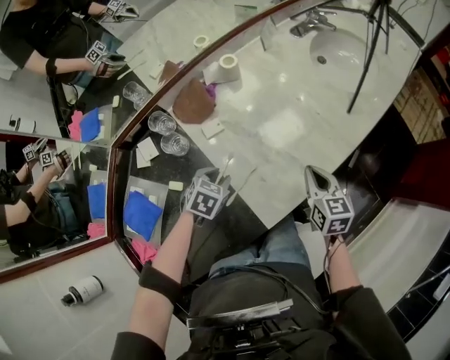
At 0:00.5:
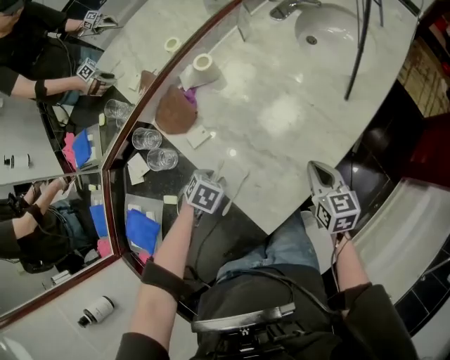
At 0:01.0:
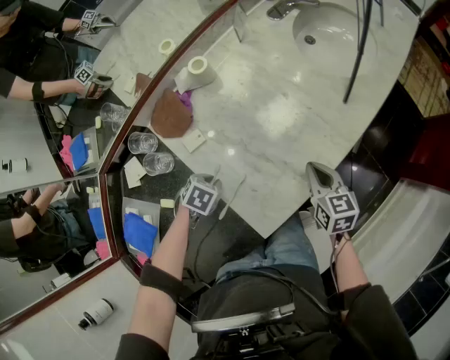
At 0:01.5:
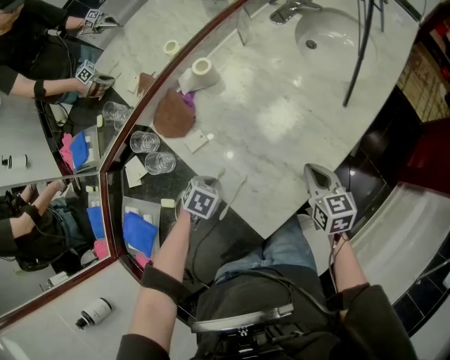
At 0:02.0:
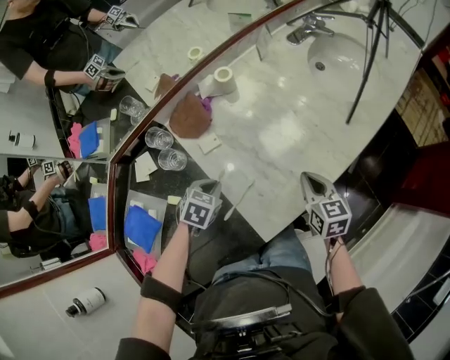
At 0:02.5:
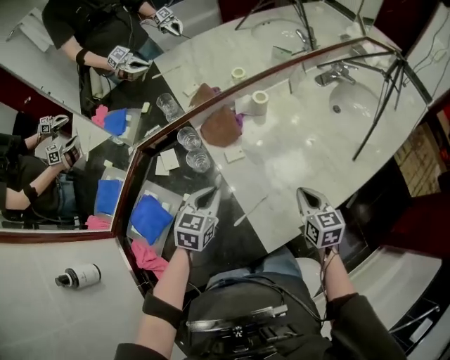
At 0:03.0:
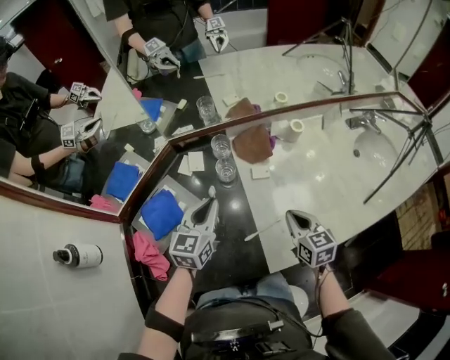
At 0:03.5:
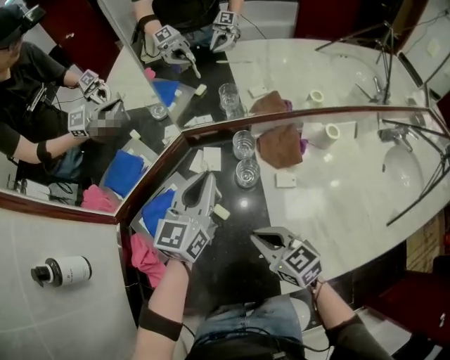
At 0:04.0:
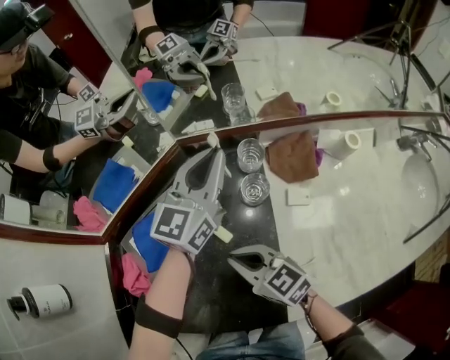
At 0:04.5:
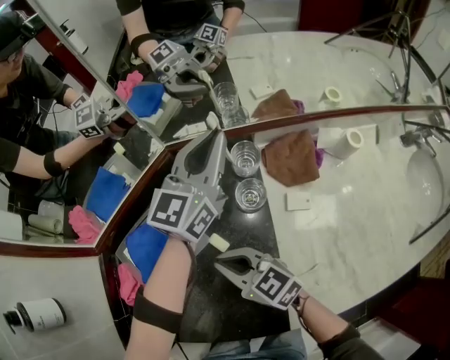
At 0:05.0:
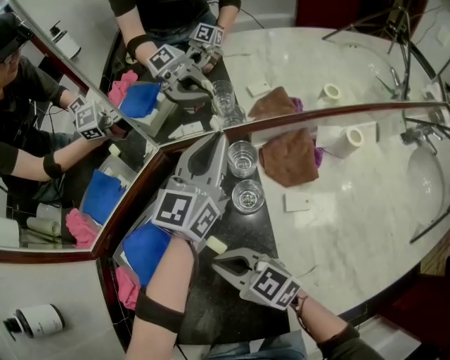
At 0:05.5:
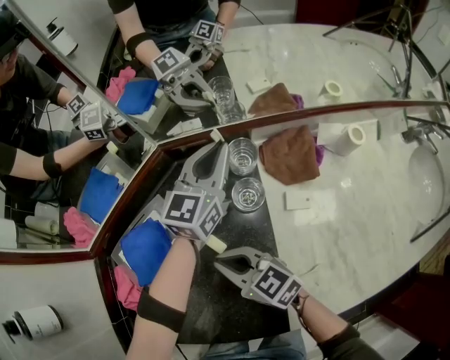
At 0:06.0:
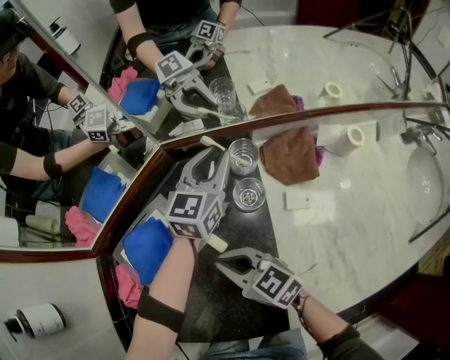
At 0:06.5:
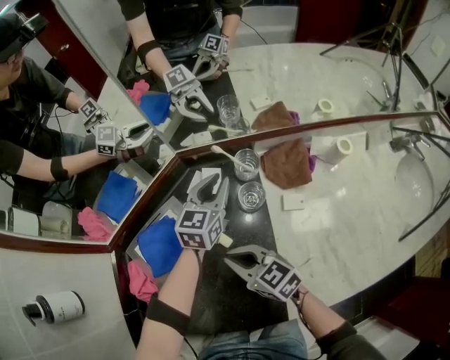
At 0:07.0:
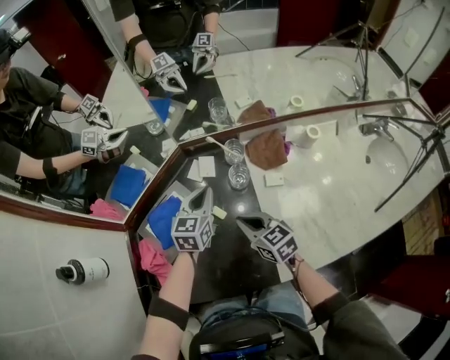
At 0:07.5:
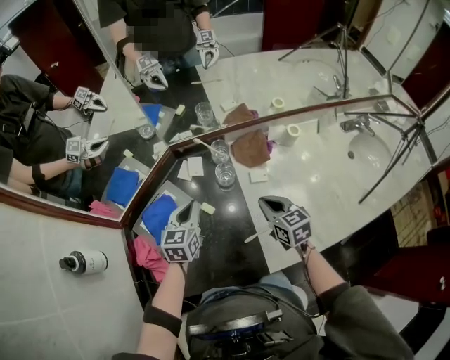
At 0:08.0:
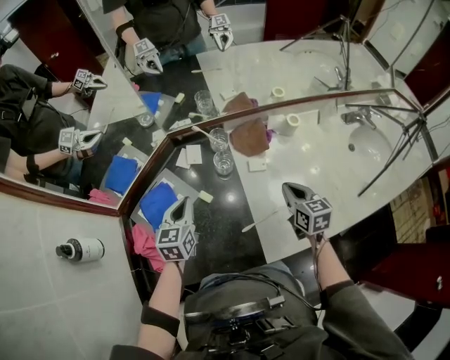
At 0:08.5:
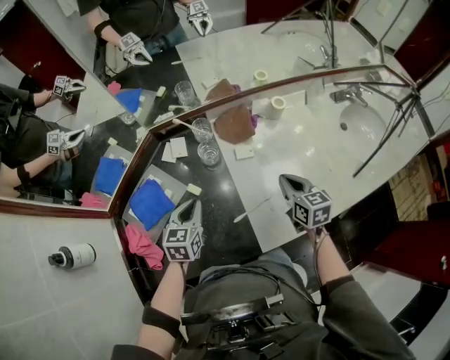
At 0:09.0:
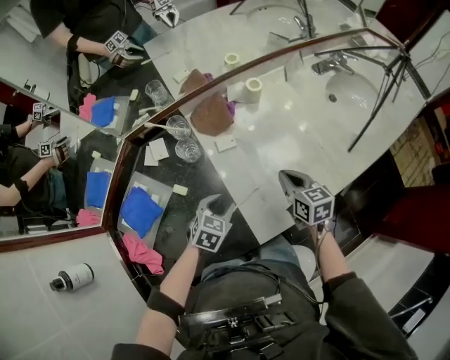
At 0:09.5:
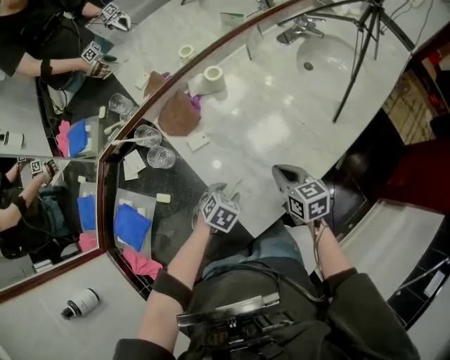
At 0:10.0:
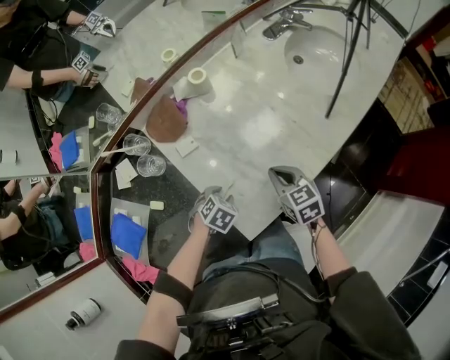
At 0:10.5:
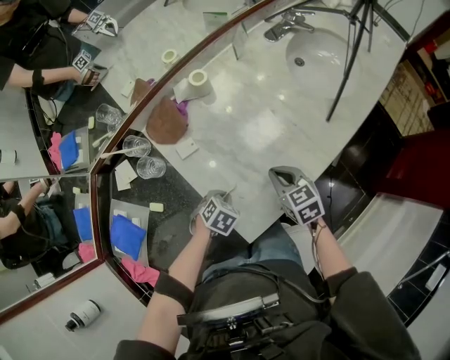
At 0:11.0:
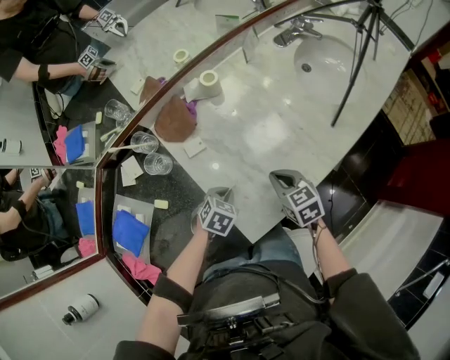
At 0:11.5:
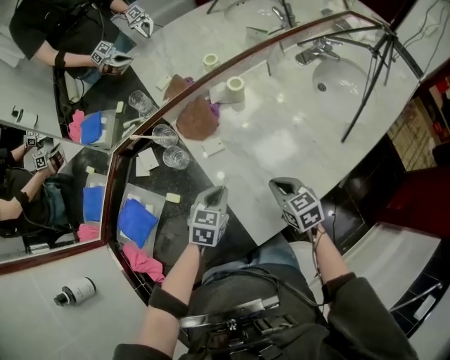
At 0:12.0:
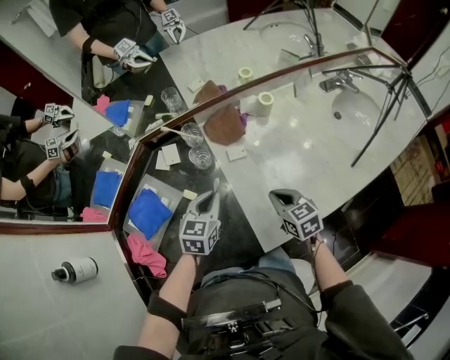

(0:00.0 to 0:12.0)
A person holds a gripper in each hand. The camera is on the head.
0:00.0 - 0:02.0: The left gripper closes.
0:02.0 - 0:04.0: The left gripper ends up about 35 cm from where it was, and tips its fingers upward by roughly 70 degrees. The right gripper changes place by about 40 cm, and rotates some 70 degrees.
0:04.0 - 0:06.0: The left gripper goes approximately 10 cm downward.
0:06.0 - 0:08.0: The left gripper travels backward and to the left by approximately 25 cm, and closes, while the right gripper goes about 30 cm to the right, and rotates approximately 50 degrees.
0:08.0 - 0:10.0: The left gripper ends up roughly 40 cm from where it was, angles its fingers downward, by approximately 40 degrees, and opens its fingers; the right gripper ends up some 20 cm from where it was.
0:10.0 - 0:12.0: The right gripper moves some 15 cm. Meanwhile the left gripper shifts approximately 20 cm upward, tilts its fingers approximately 40 degrees upward, and closes its fingers.

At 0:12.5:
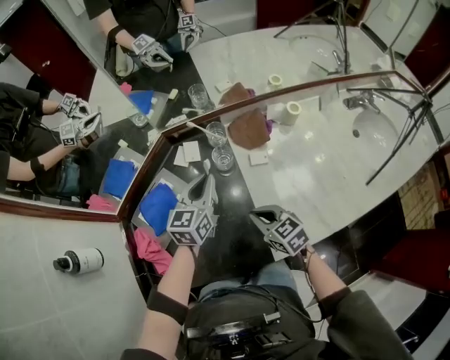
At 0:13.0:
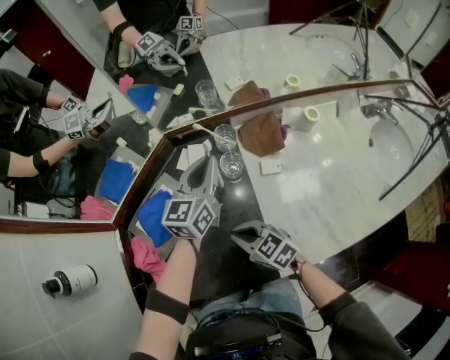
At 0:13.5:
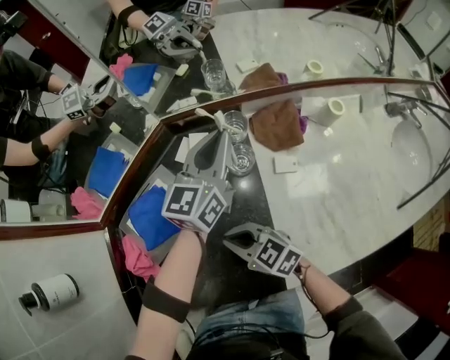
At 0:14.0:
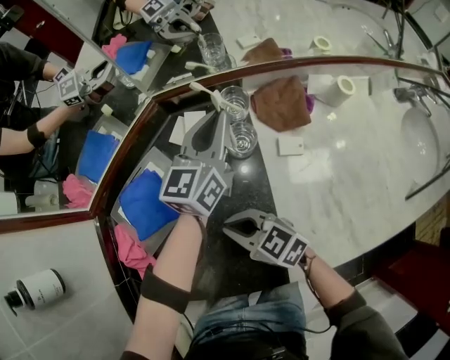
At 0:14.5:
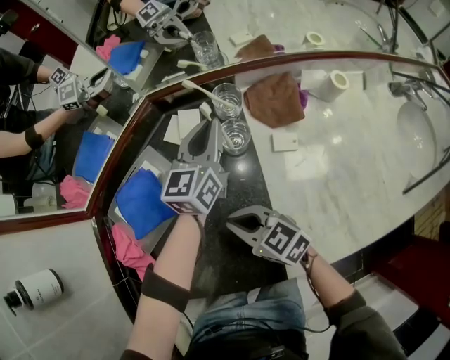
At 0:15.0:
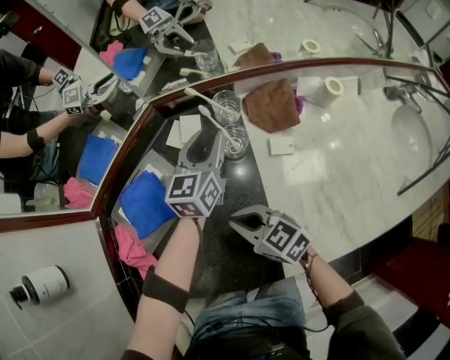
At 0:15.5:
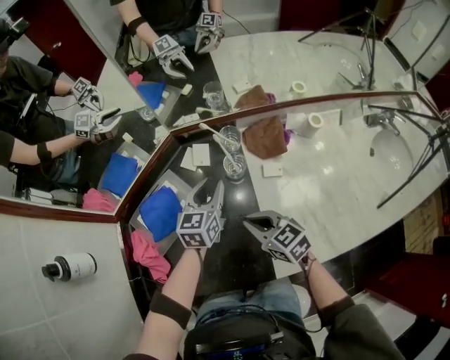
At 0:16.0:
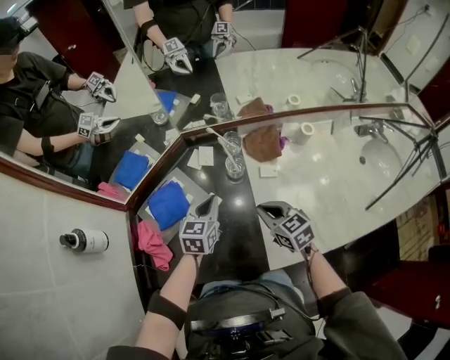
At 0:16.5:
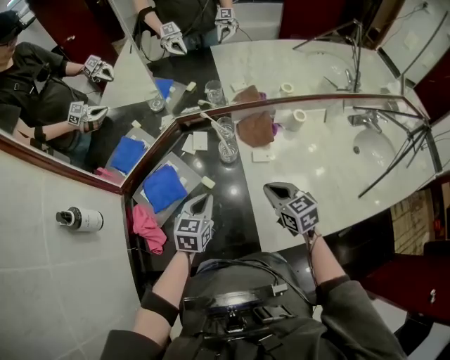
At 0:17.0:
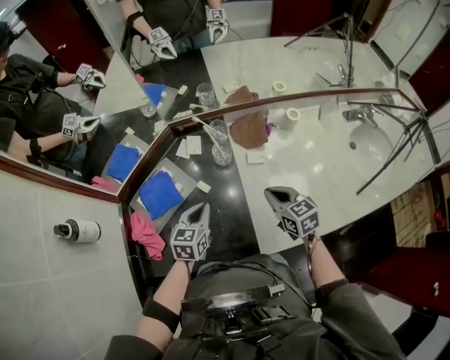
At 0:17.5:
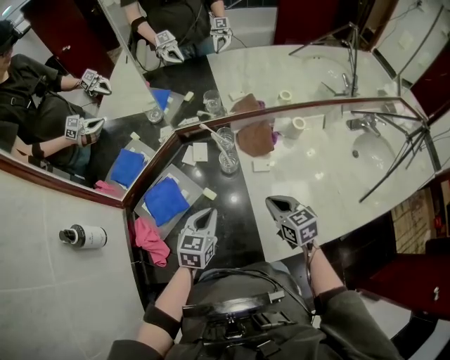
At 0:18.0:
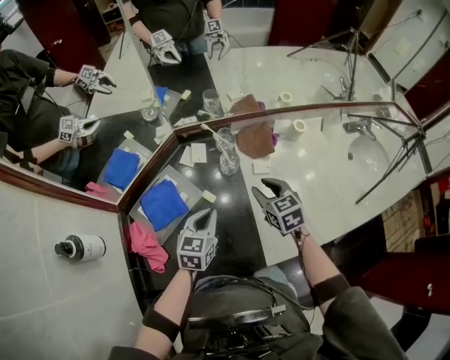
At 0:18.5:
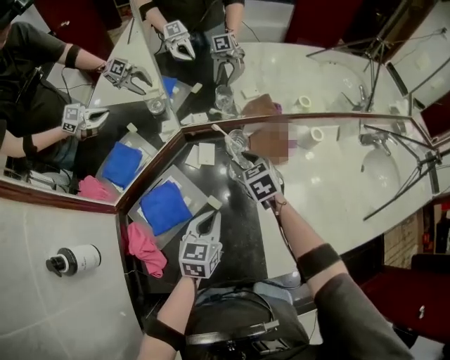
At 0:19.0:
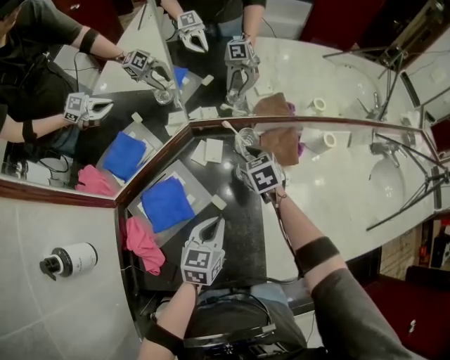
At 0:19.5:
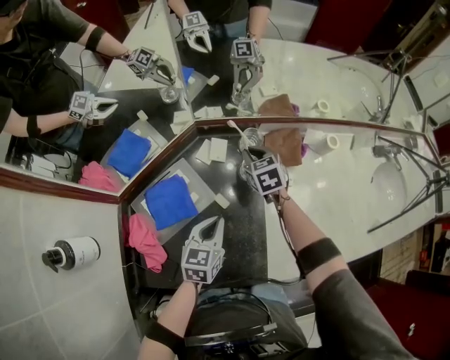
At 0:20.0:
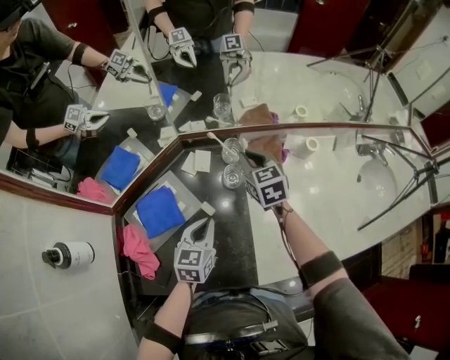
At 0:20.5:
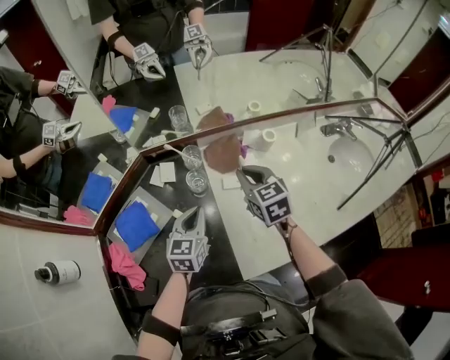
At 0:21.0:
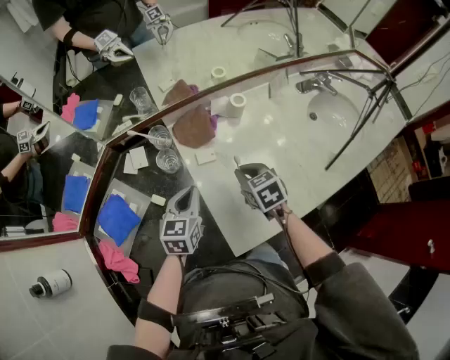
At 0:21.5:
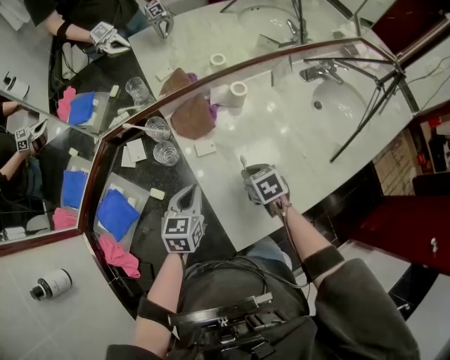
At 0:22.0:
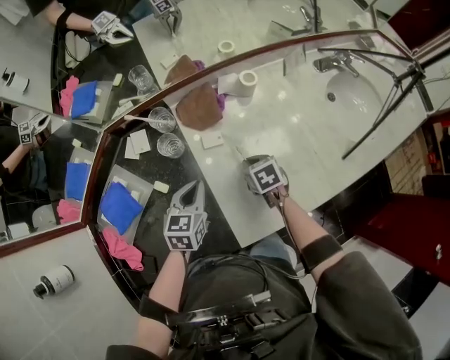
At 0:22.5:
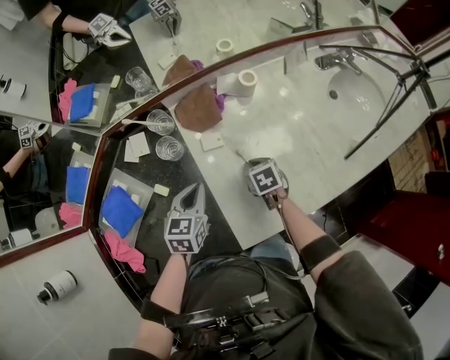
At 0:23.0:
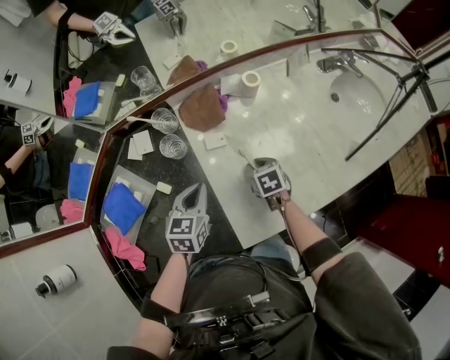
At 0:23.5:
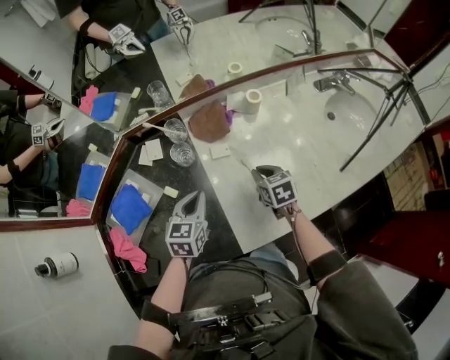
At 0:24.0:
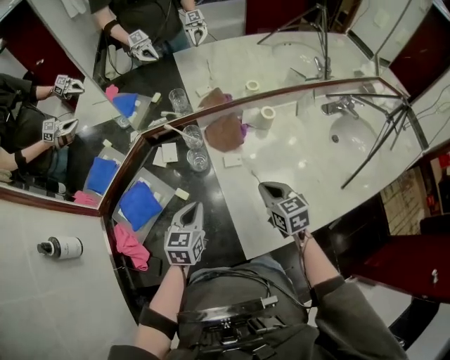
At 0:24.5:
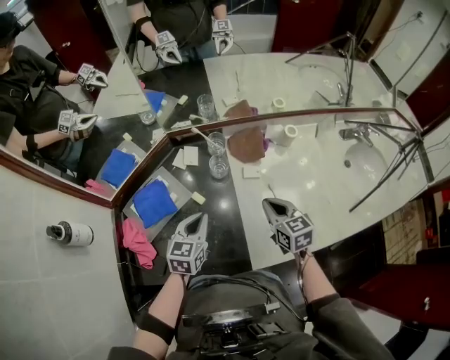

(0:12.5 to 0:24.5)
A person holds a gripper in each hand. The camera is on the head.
0:12.5 - 0:14.5: The right gripper is displaced to the left, downward and forward by some 15 cm, and swivels some 20 degrees. Meanwhile the left gripper is displaced forward and downward by some 15 cm.
0:14.5 - 0:16.5: The left gripper heads backward and to the left, covering roughly 20 cm, swivels approximately 30 degrees, and opens and closes again. Meanwhile the right gripper shifts approximately 20 cm to the right and upward, and turns by about 30 degrees.
0:16.5 - 0:18.5: The right gripper heads forward and to the left, covering approximately 25 cm, and opens up.
0:18.5 - 0:20.5: The left gripper moves to the right, roughly 10 cm, while the right gripper goes approximately 20 cm to the right and upward, and closes its fingers.
0:20.5 - 0:22.5: The left gripper moves downward and to the right, about 10 cm; the right gripper travels downward and to the right by approximately 25 cm, and swivels approximately 30 degrees.
0:22.5 - 0:24.5: The left gripper is displaced to the left, upward and backward by about 15 cm. The right gripper moves upward and to the left, some 20 cm, and tips its fingers upward by approximately 30 degrees.

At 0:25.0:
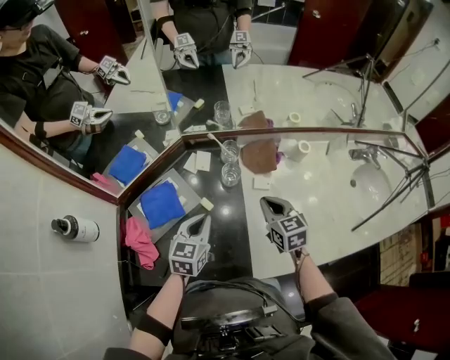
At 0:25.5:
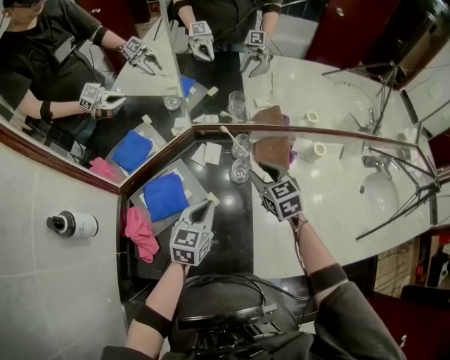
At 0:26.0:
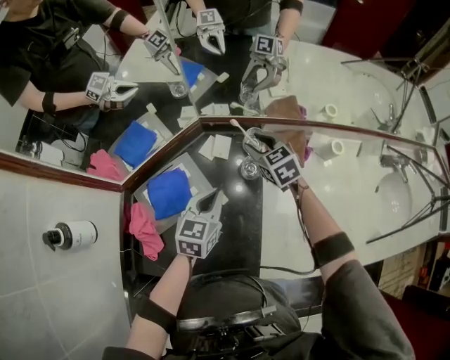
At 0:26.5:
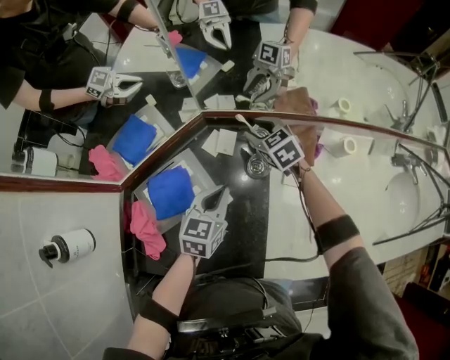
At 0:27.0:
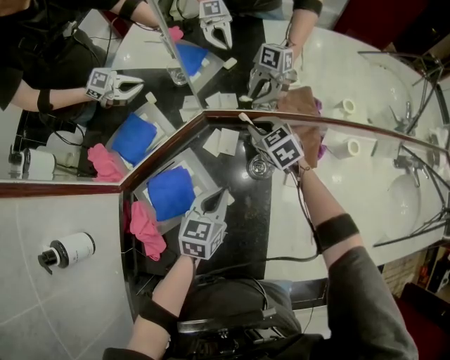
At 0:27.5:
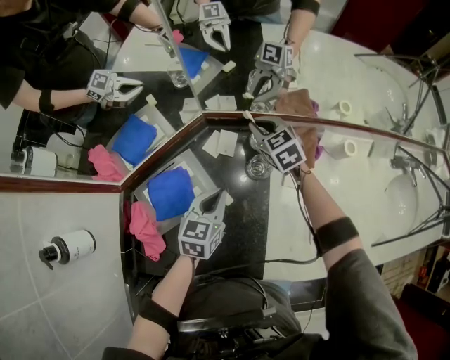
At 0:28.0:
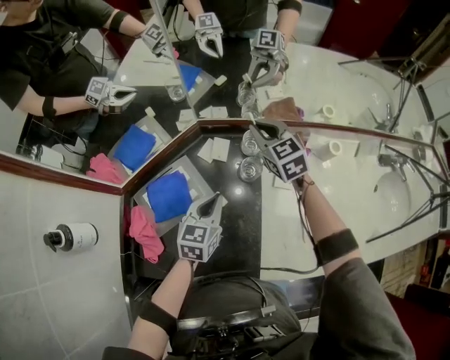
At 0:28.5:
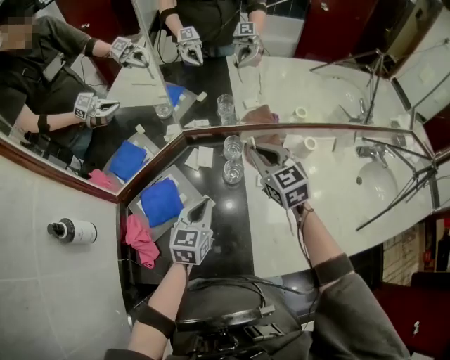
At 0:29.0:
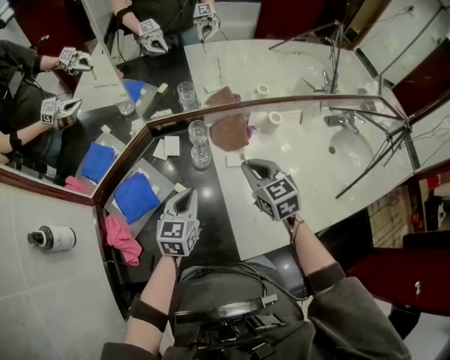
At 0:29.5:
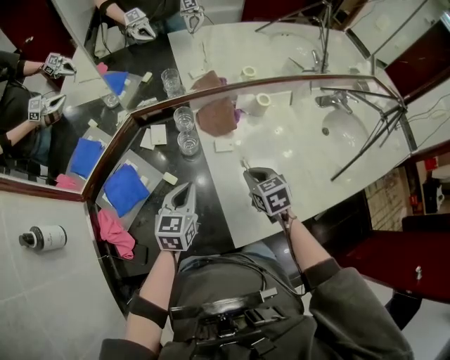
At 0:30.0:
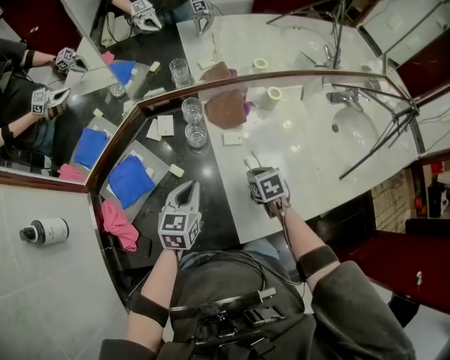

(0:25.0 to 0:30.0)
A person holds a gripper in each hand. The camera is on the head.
0:25.0 - 0:27.5: The left gripper heads forward and downward, covering about 10 cm. The right gripper moves forward, approximately 30 cm, turns by about 20 degrees, and opens and closes again.
0:27.5 - 0:30.0: The left gripper travels backward and to the right by roughly 15 cm; the right gripper shifts about 35 cm backward and to the right, and rotates some 40 degrees.
